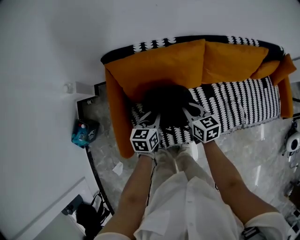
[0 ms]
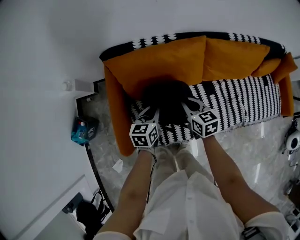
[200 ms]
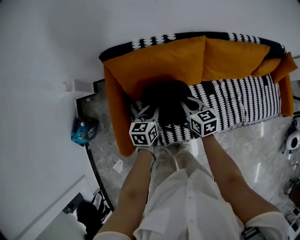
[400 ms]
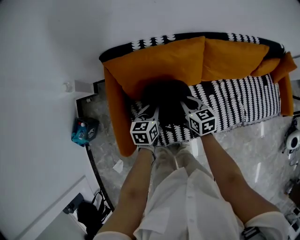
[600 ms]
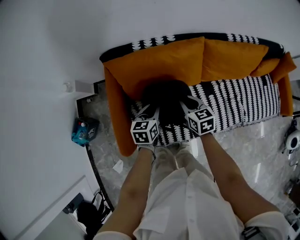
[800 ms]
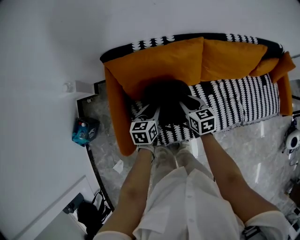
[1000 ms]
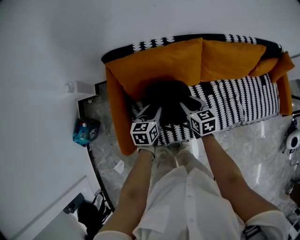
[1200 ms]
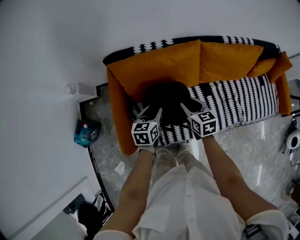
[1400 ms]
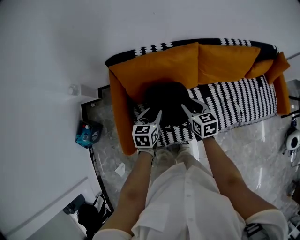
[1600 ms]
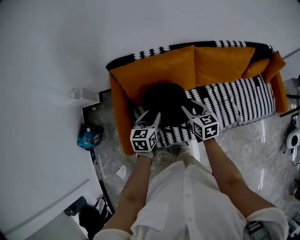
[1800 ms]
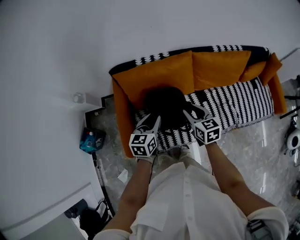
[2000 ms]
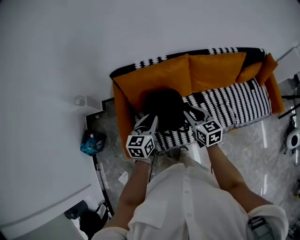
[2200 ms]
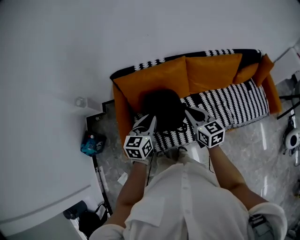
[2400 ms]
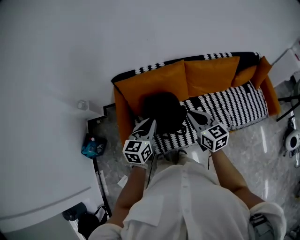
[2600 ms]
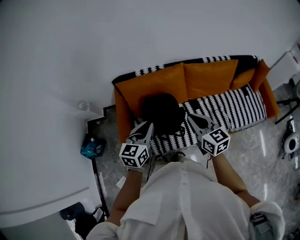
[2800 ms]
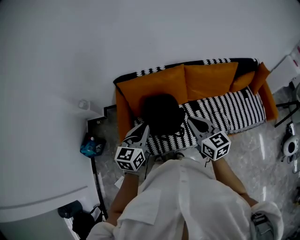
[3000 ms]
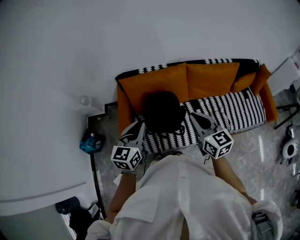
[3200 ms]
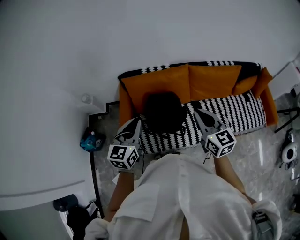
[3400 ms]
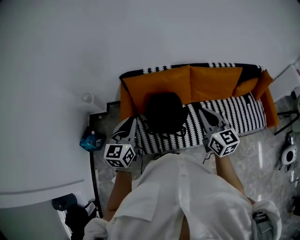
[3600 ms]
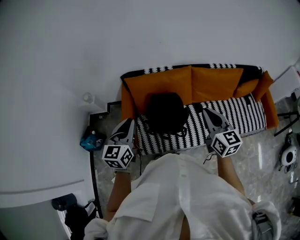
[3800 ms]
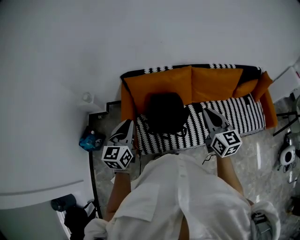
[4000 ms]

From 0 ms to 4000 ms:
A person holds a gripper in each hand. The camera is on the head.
From 0 ms to 1400 ms: The left gripper opens up; the right gripper opens.
From 1400 ms to 2600 ms: The grippers both shift upward and backward by some 25 cm. The left gripper closes its fingers. The right gripper closes up.
From 2600 ms to 4000 ms: The right gripper travels upward by about 10 cm. The left gripper goes some 15 cm to the left and upward.

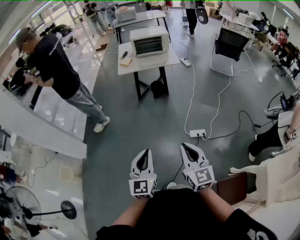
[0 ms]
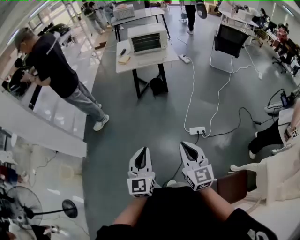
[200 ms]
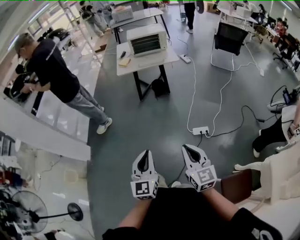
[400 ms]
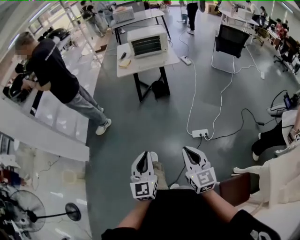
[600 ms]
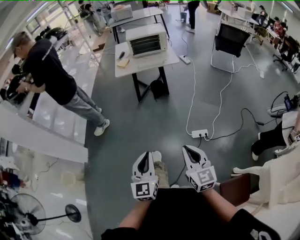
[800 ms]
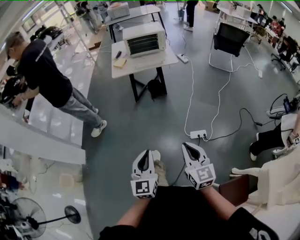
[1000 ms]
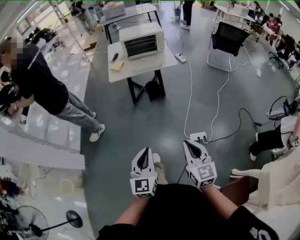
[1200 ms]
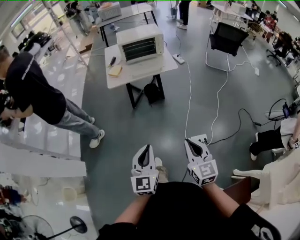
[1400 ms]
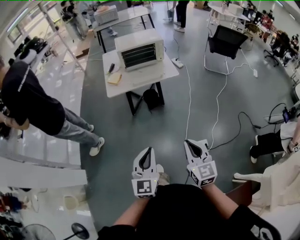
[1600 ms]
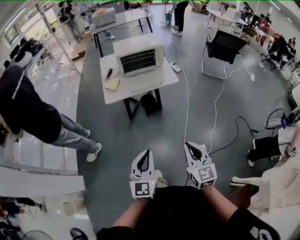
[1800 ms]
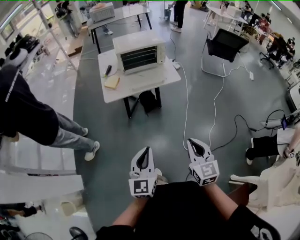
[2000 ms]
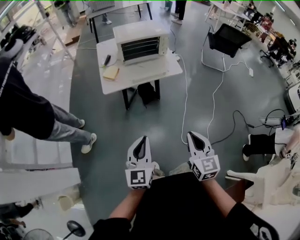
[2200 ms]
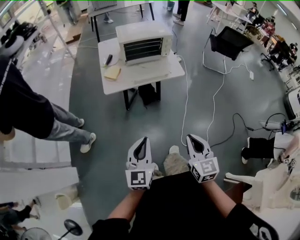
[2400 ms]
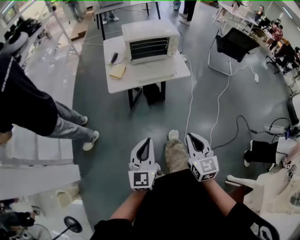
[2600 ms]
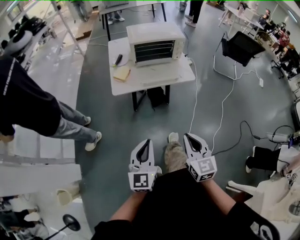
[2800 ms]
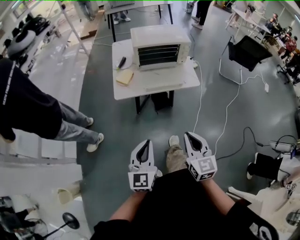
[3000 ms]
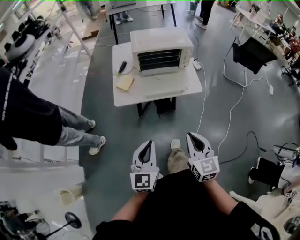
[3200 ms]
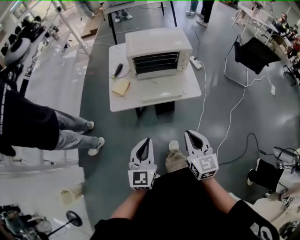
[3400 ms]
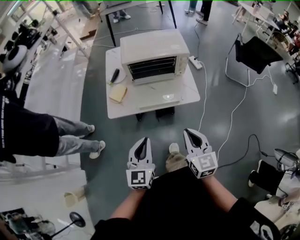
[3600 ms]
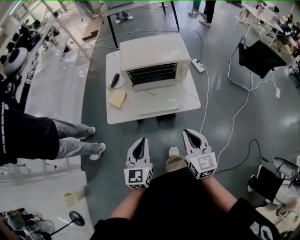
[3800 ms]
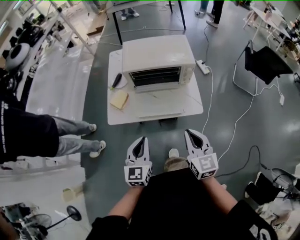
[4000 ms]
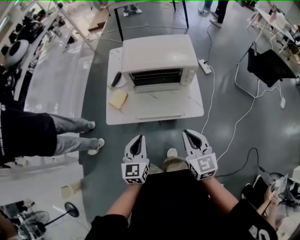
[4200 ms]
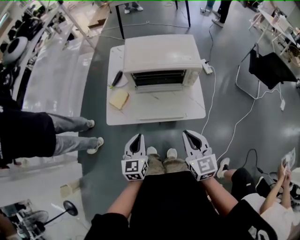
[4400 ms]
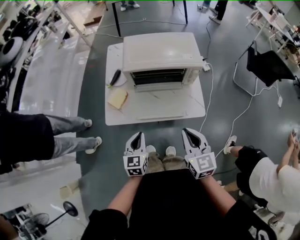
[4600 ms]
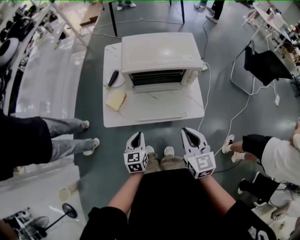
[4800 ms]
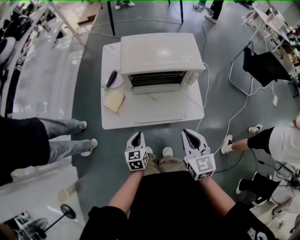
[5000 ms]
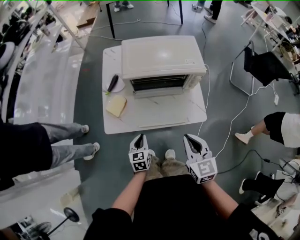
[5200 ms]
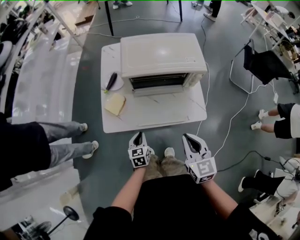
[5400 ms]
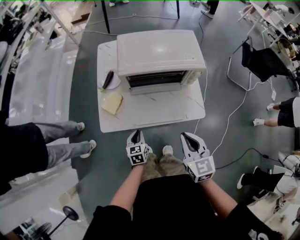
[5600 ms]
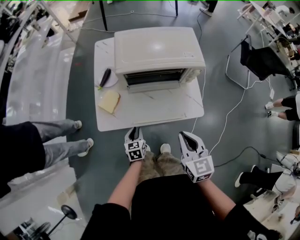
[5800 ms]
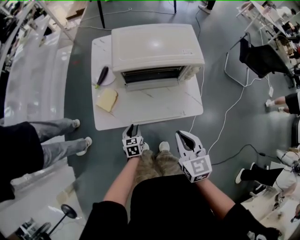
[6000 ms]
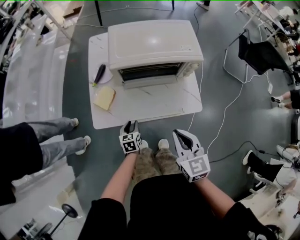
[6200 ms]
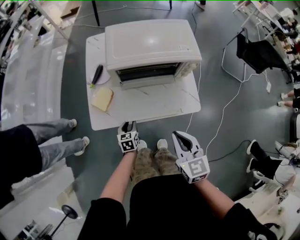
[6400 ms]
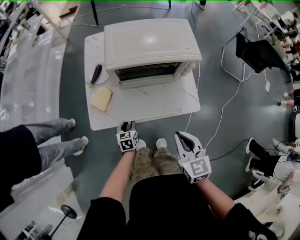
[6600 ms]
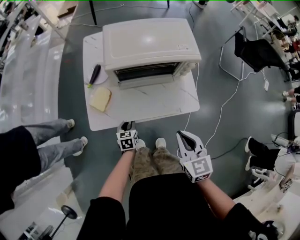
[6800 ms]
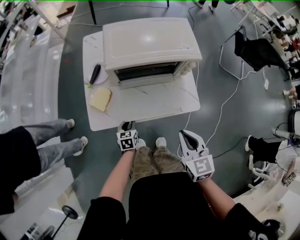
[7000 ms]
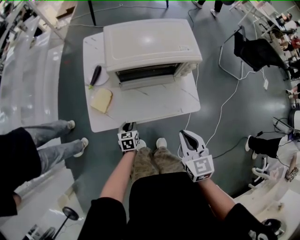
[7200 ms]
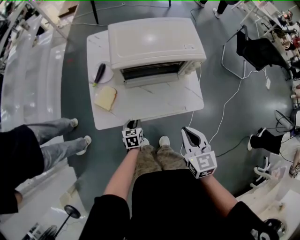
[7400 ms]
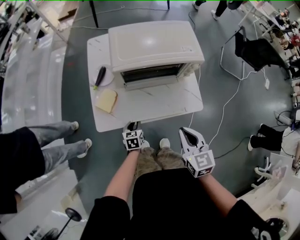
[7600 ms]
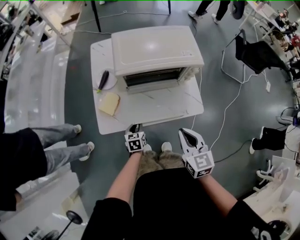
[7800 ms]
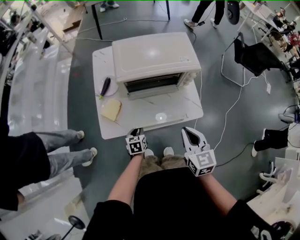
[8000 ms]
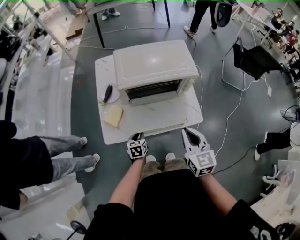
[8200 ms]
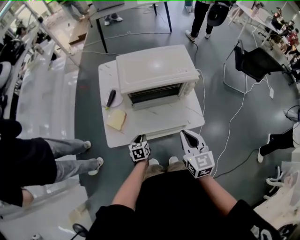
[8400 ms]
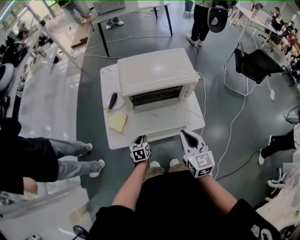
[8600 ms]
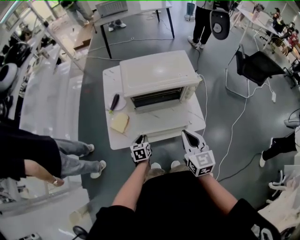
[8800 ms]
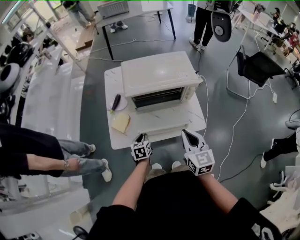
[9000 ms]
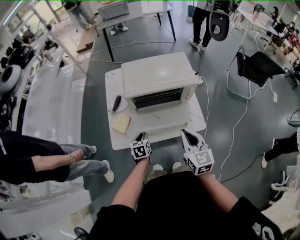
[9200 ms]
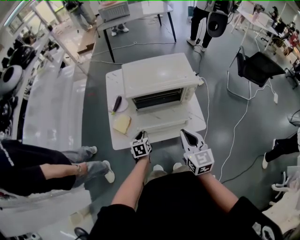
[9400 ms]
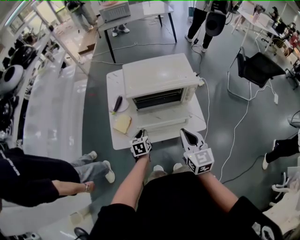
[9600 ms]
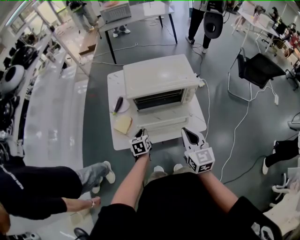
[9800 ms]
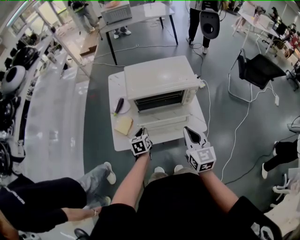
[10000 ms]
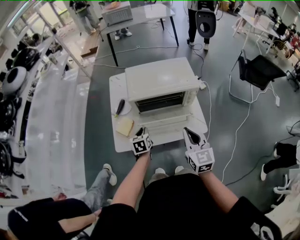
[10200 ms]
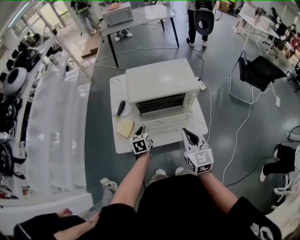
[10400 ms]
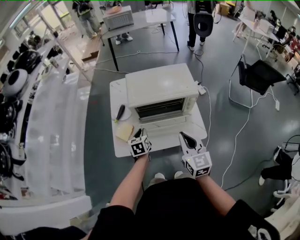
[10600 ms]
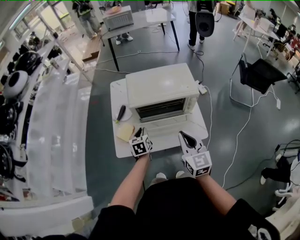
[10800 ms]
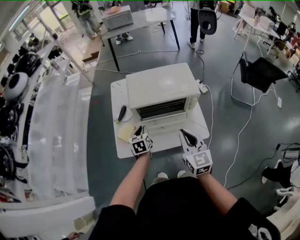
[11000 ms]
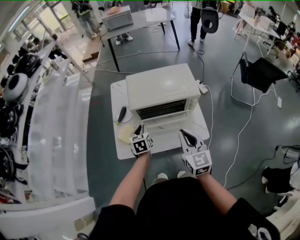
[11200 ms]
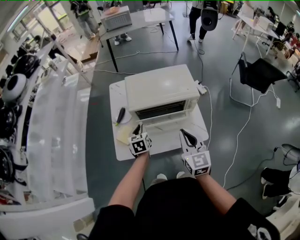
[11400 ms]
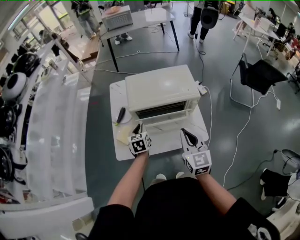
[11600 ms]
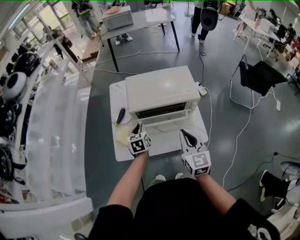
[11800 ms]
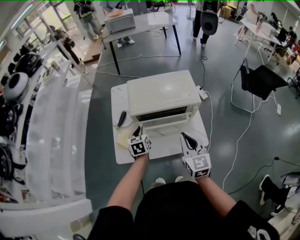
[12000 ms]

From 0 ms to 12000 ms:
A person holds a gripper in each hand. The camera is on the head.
From 0 ms to 1600 ms: Both grippers move forward, some 40 cm.
From 1600 ms to 3000 ms: The left gripper heads forward and to the left, covering approximately 25 cm; the right gripper goes roughly 25 cm forward.
From 3000 ms to 4400 ms: Both grippers move forward, some 35 cm.
From 4400 ms to 6000 ms: The right gripper goes some 10 cm forward and downward; the left gripper goes about 25 cm downward, turns by roughly 20 degrees, and opens.
From 6000 ms to 7600 ms: The grippers make only small movements.
From 7600 ms to 9000 ms: The two grippers go about 10 cm upward.
From 9000 ms to 10400 ms: The left gripper goes about 10 cm upward and forward.
From 10400 ms to 12000 ms: The left gripper heads forward, covering approximately 5 cm.

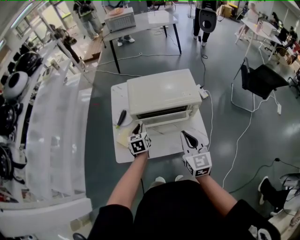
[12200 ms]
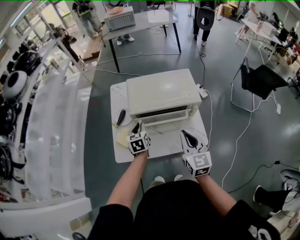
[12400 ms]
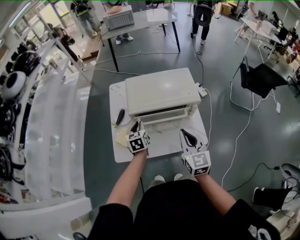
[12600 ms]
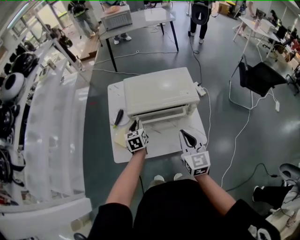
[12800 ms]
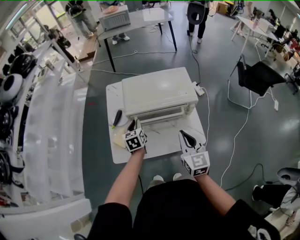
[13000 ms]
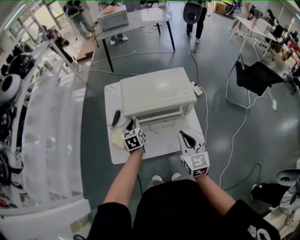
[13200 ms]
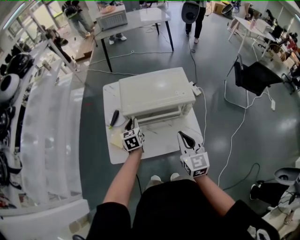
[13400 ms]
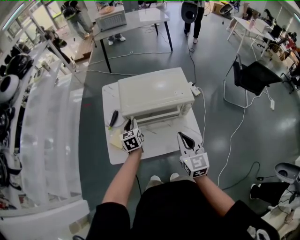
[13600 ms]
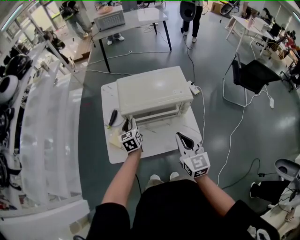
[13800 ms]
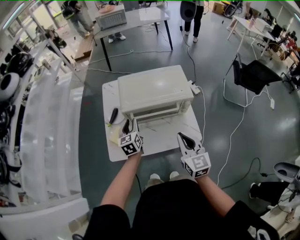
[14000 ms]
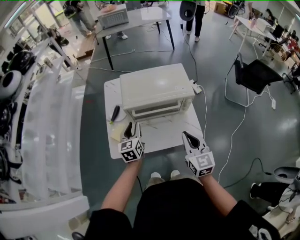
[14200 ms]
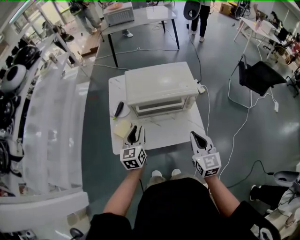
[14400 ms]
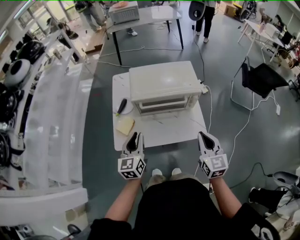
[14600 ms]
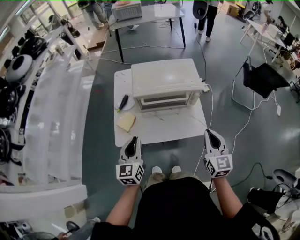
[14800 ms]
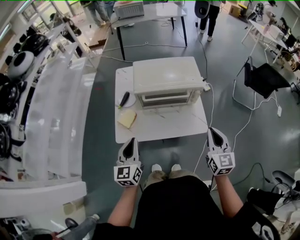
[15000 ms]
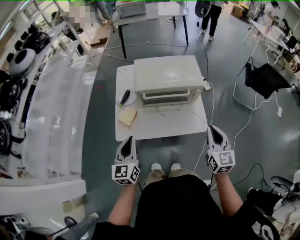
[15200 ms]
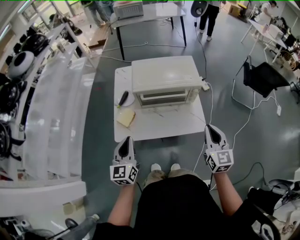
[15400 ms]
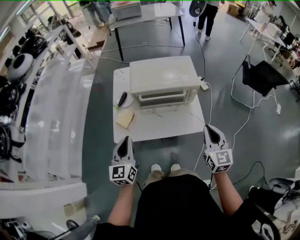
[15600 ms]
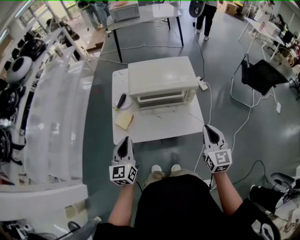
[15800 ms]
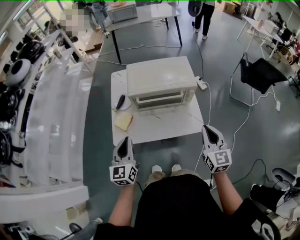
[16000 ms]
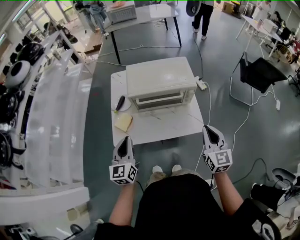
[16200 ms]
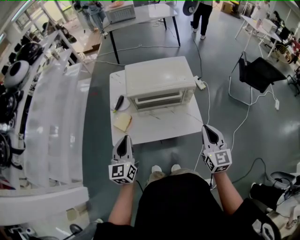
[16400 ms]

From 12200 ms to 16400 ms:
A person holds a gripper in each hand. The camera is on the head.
From 12200 ms to 13600 ms: The grippers make only small movements.
From 13600 ms to 15000 ms: The left gripper shifts roughly 30 cm backward and upward. The right gripper goes some 10 cm backward and to the right.
From 15000 ms to 16400 ms: The grippers make only small movements.

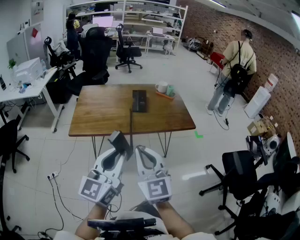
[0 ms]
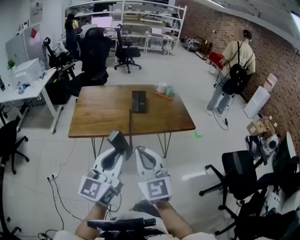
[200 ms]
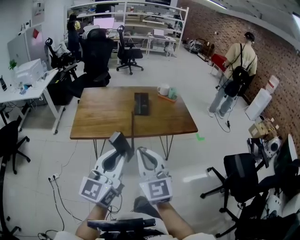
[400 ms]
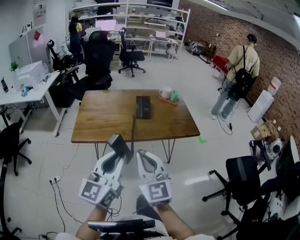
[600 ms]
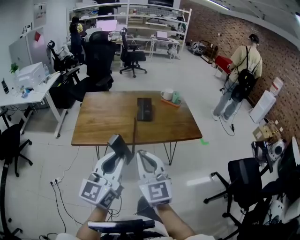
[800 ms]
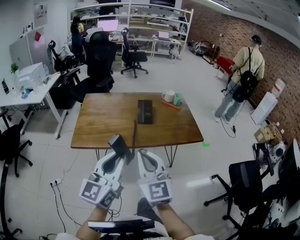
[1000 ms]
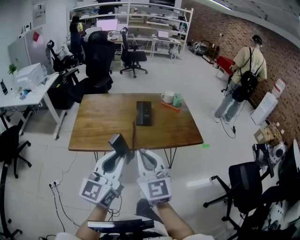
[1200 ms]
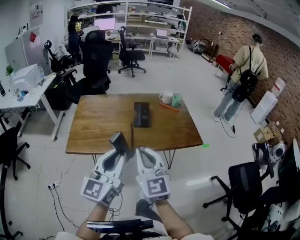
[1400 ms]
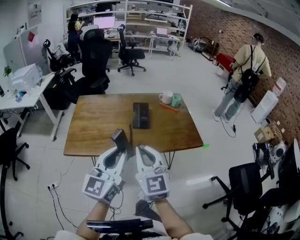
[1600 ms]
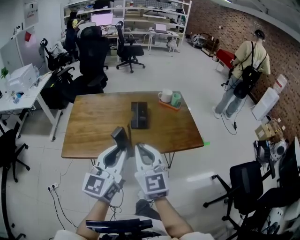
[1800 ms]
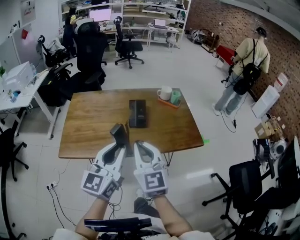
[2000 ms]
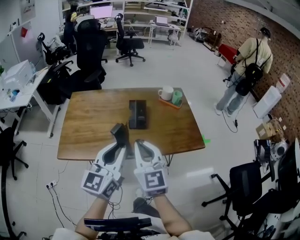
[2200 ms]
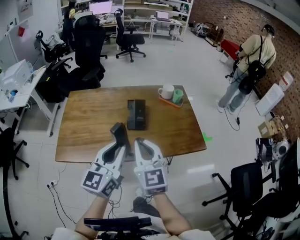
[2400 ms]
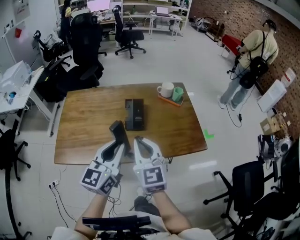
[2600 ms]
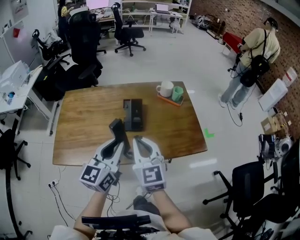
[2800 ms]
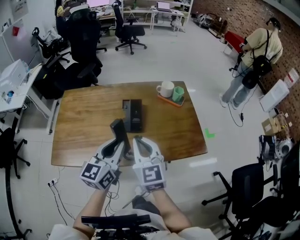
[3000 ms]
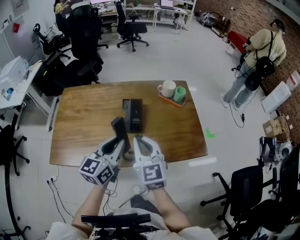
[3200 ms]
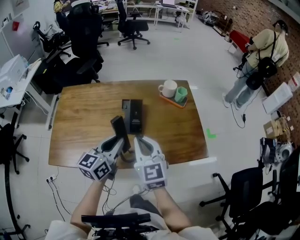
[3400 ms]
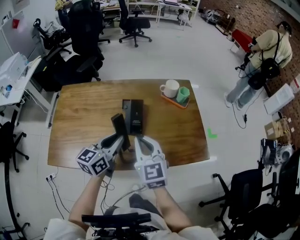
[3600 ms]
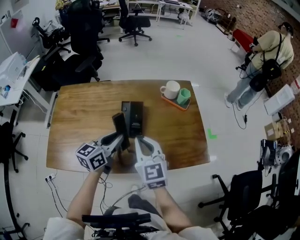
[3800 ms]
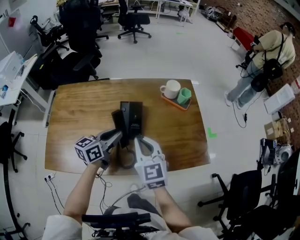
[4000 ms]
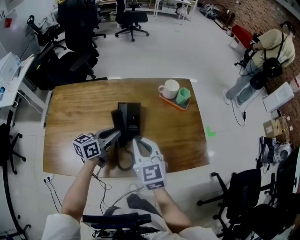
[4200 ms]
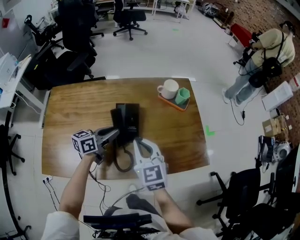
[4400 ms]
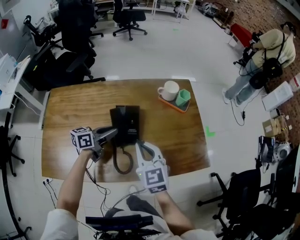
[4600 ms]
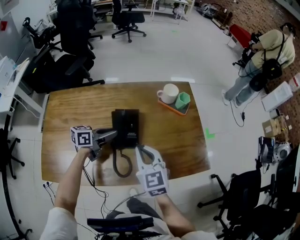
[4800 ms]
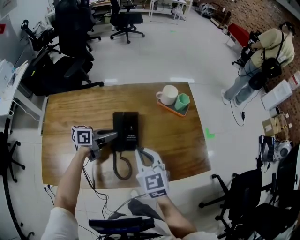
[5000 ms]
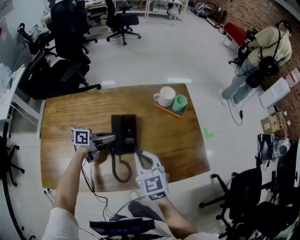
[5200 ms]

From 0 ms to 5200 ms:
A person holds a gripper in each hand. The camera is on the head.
From 0 ms to 1800 ms: The grippers both shift forward by approximately 20 cm.
From 1800 ms to 3400 ms: The grippers both shift forward and downward by some 25 cm. The left gripper turns by about 20 degrees.
From 3400 ms to 5200 ms: The left gripper moves forward and downward, approximately 25 cm, and rotates some 50 degrees, while the right gripper is displaced downward and forward by about 10 cm.
